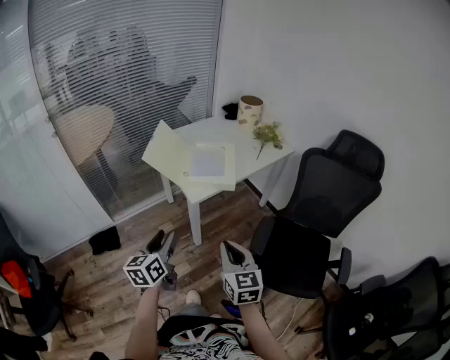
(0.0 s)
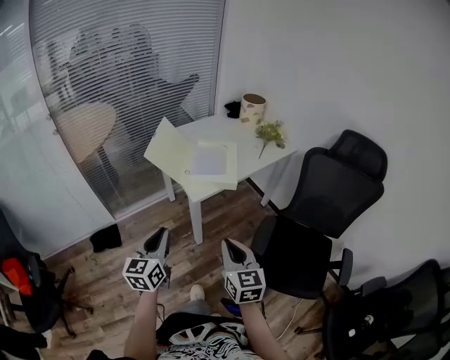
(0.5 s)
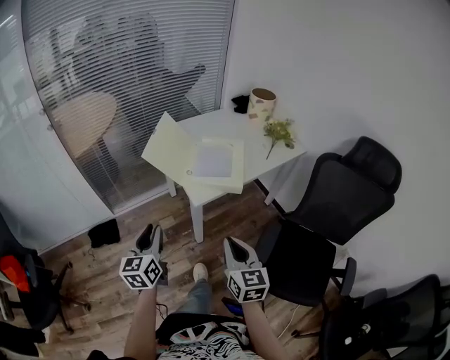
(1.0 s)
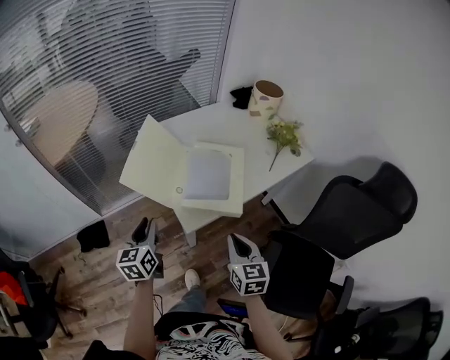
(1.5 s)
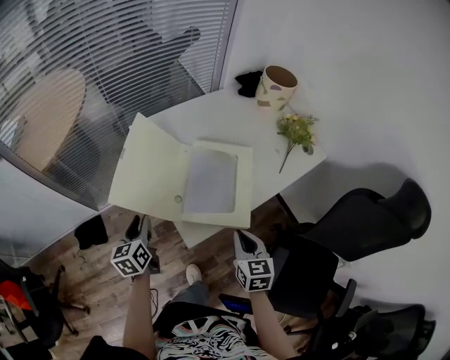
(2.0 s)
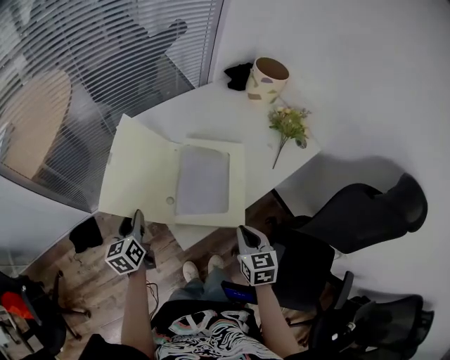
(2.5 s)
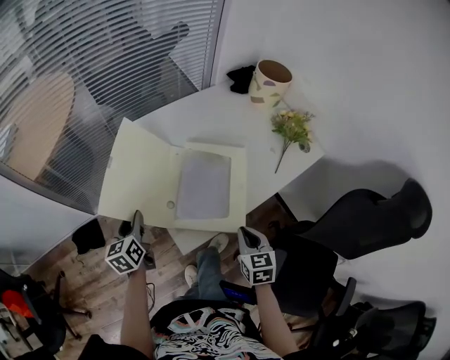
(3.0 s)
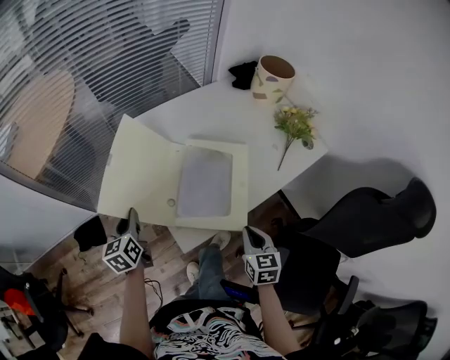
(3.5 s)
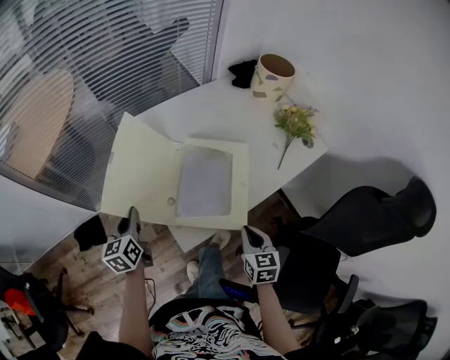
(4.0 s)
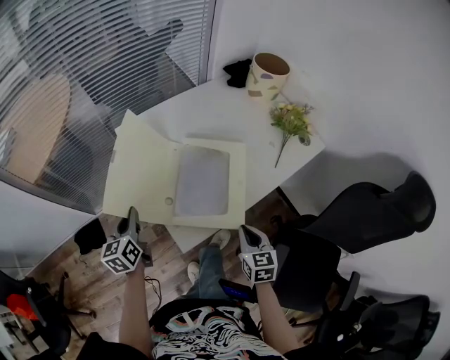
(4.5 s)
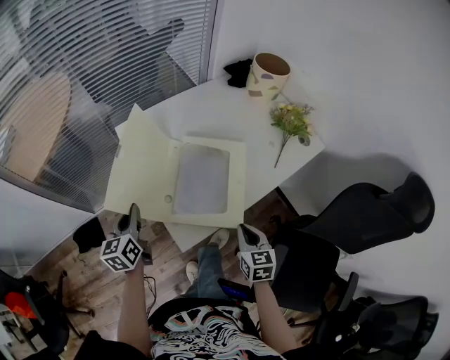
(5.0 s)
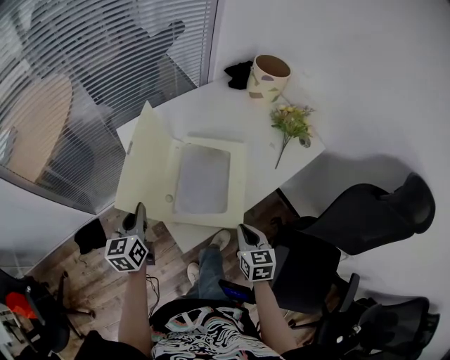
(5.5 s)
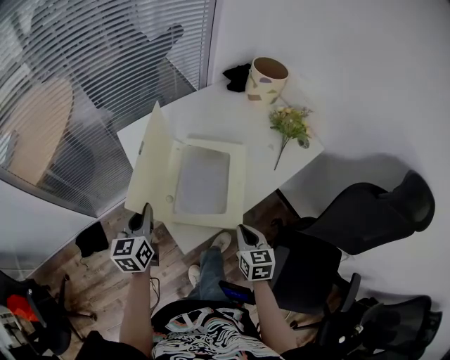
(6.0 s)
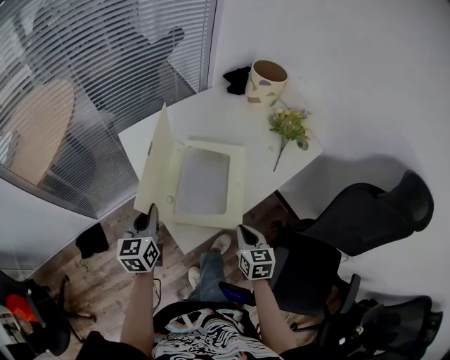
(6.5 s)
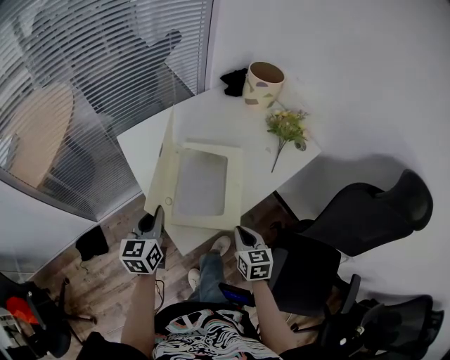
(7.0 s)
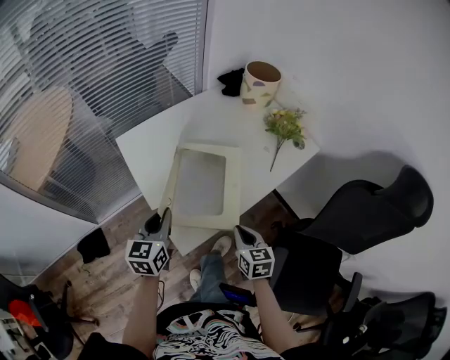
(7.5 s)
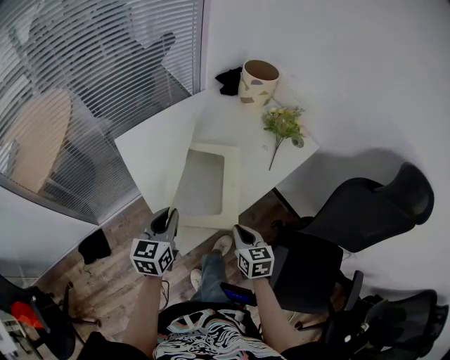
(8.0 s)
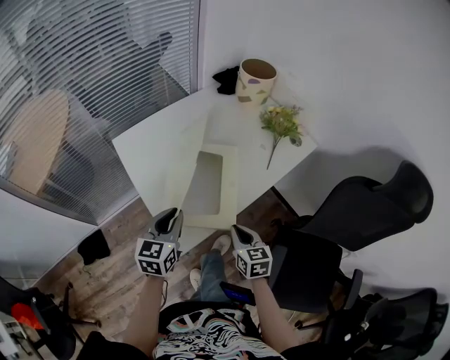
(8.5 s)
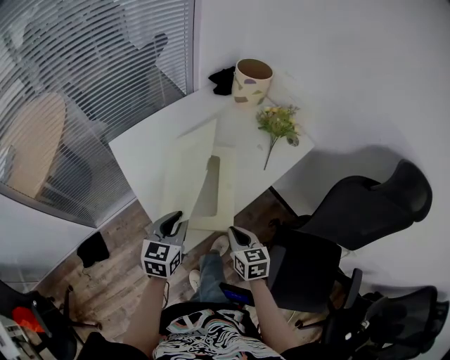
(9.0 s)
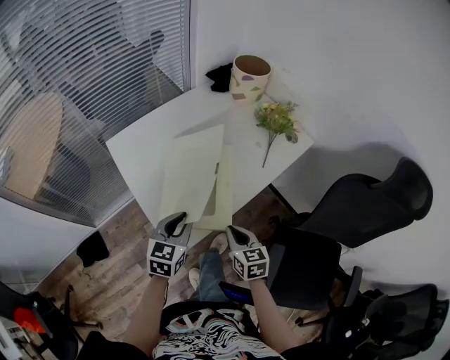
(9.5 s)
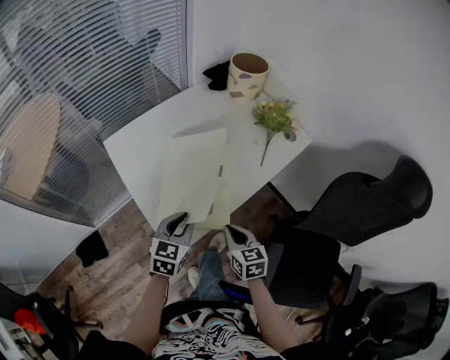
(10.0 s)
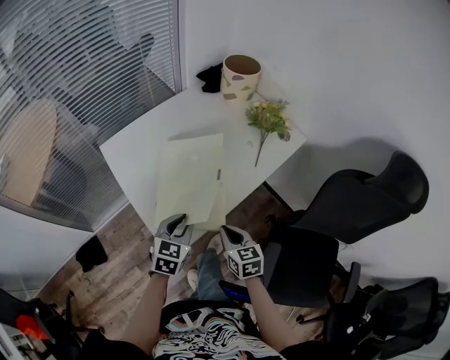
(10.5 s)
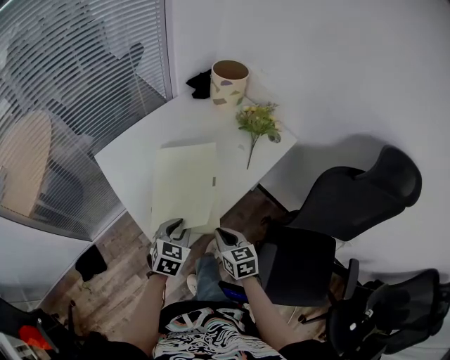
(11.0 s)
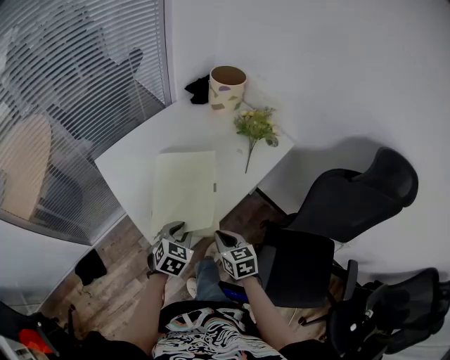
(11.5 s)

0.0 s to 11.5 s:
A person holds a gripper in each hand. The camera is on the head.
0.0 to 2.0 s: The grippers both shift forward by roughly 35 cm.
2.0 to 4.0 s: The right gripper travels downward and to the right by some 5 cm.
4.0 to 6.0 s: The left gripper is displaced to the right by about 5 cm.
6.0 to 7.5 s: The left gripper moves to the right, roughly 5 cm.
7.5 to 9.5 s: The left gripper is displaced to the right by roughly 10 cm.
9.5 to 11.5 s: The left gripper ends up some 5 cm from where it was, and rotates approximately 20 degrees.

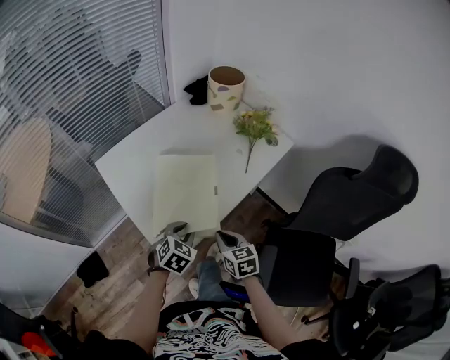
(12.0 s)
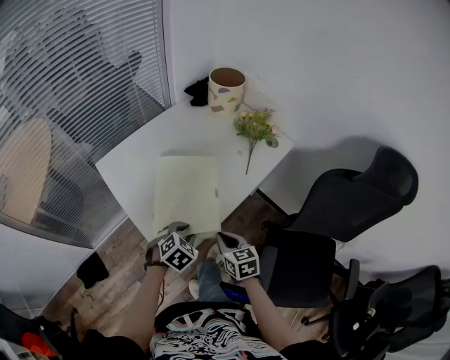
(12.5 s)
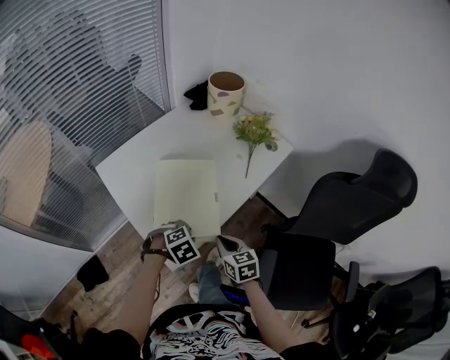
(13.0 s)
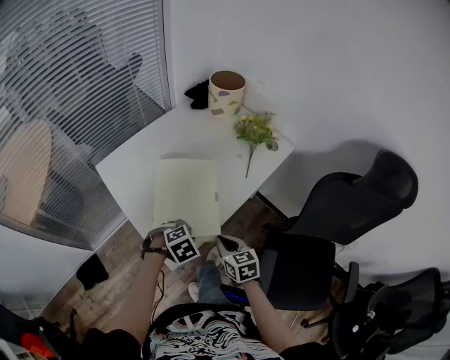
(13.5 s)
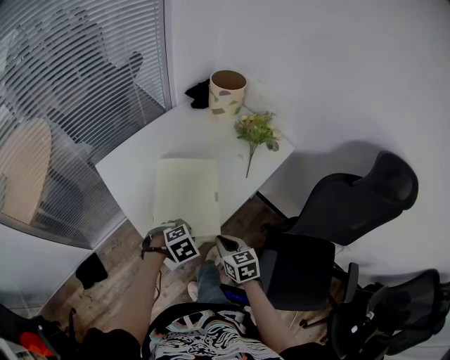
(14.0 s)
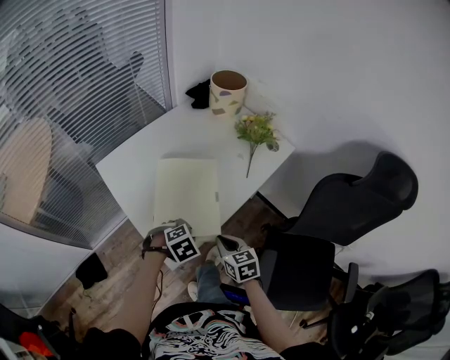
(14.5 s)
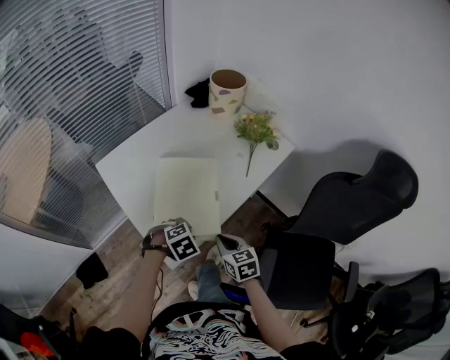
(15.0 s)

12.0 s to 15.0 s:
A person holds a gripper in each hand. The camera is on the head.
12.0 to 13.5 s: The left gripper rotates approximately 30 degrees.
13.5 to 15.0 s: Neither gripper changes place.

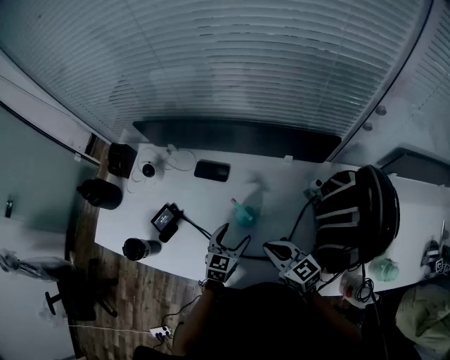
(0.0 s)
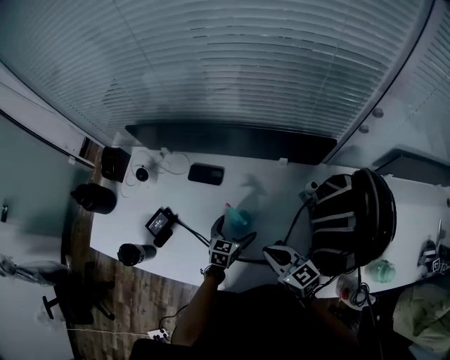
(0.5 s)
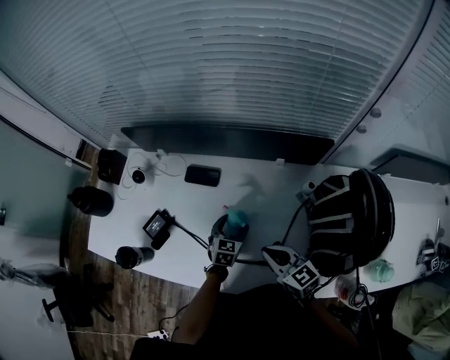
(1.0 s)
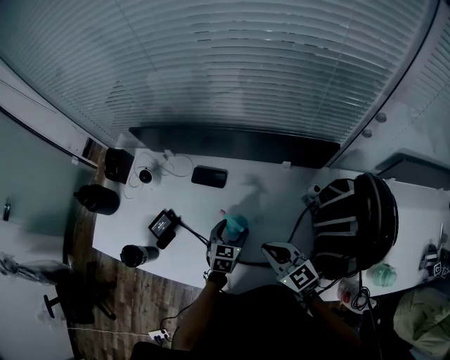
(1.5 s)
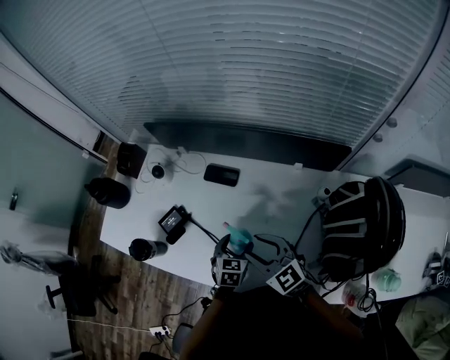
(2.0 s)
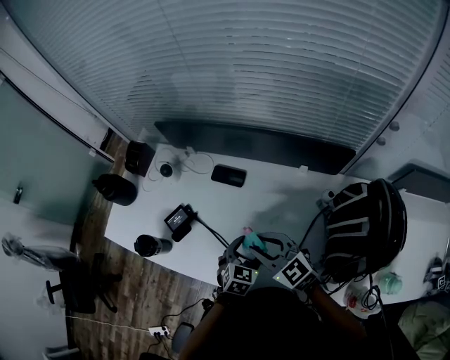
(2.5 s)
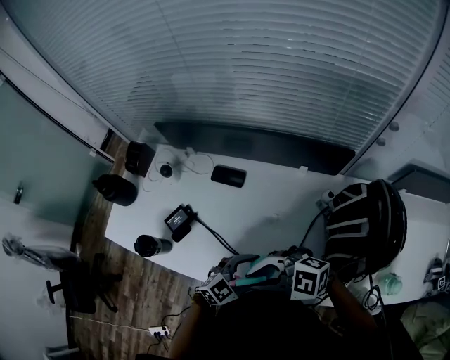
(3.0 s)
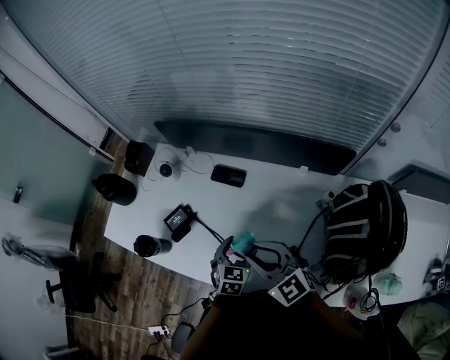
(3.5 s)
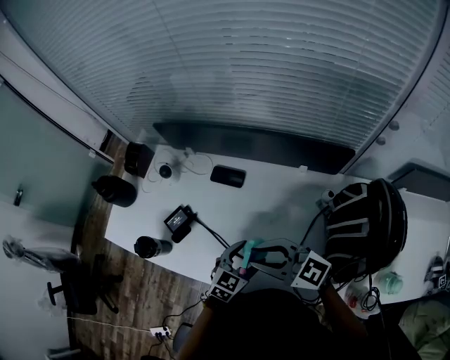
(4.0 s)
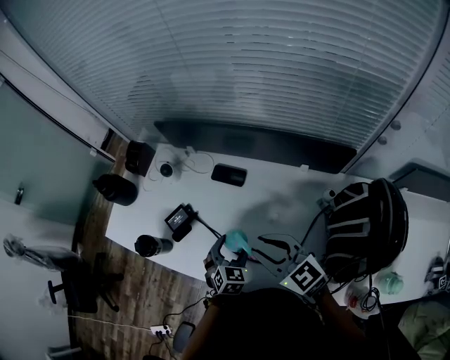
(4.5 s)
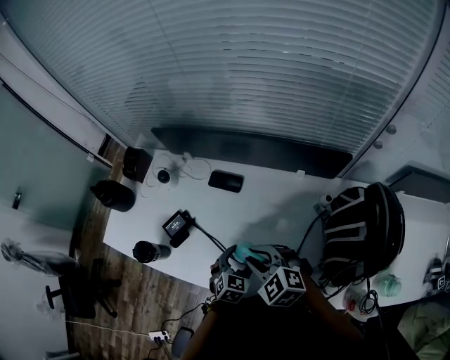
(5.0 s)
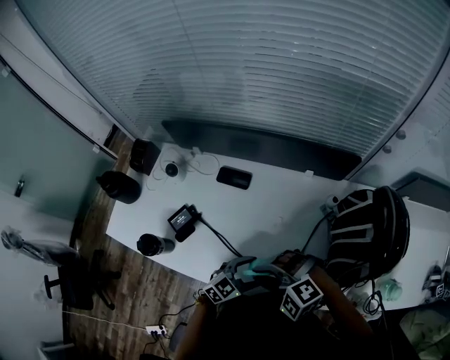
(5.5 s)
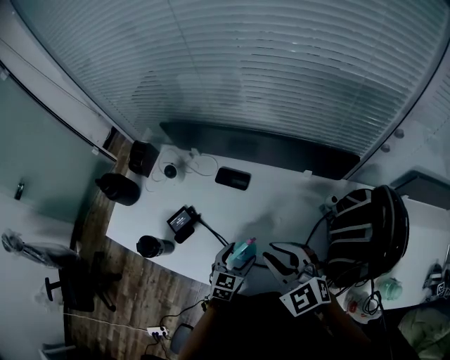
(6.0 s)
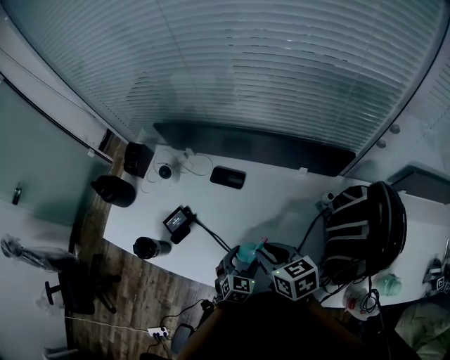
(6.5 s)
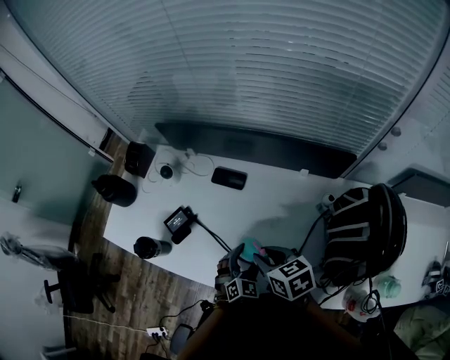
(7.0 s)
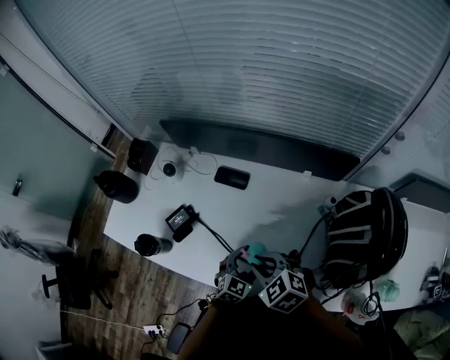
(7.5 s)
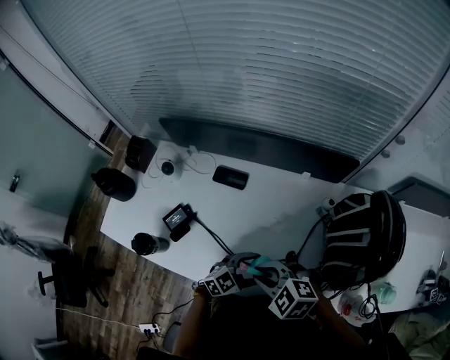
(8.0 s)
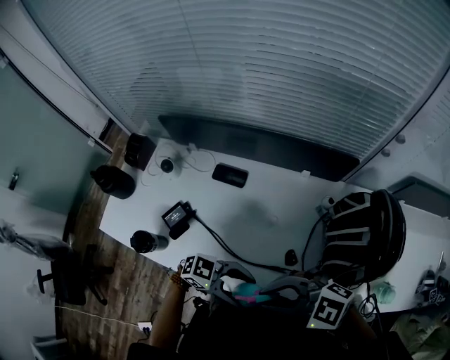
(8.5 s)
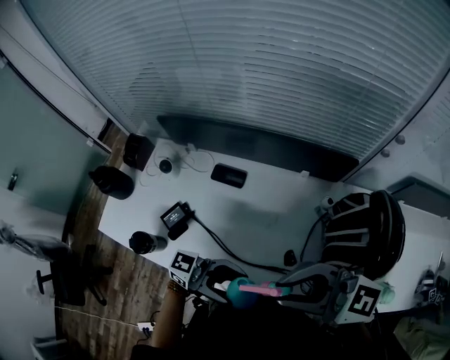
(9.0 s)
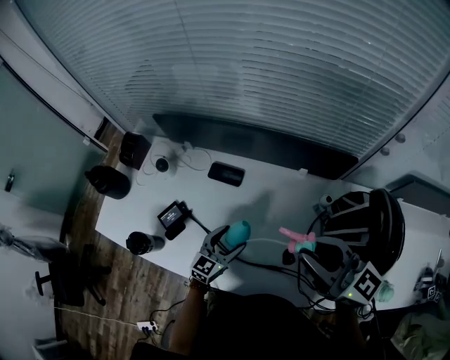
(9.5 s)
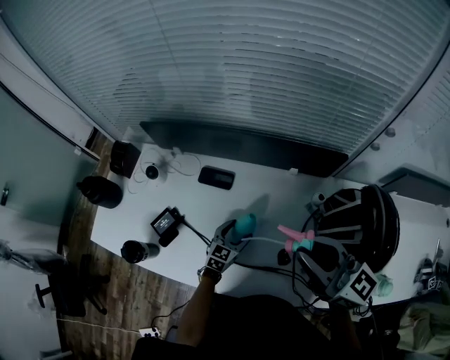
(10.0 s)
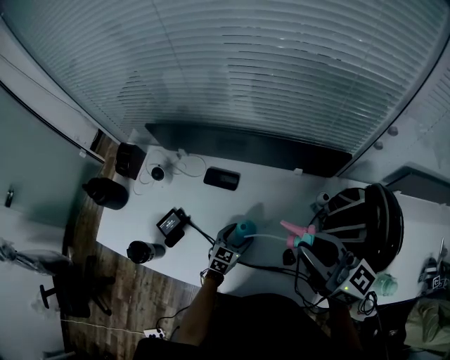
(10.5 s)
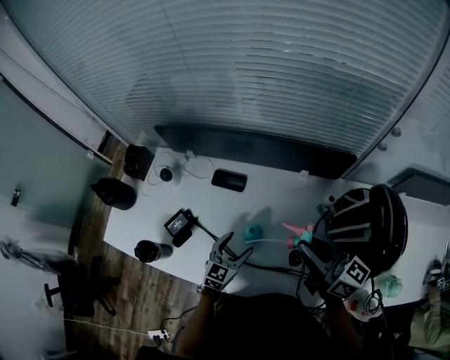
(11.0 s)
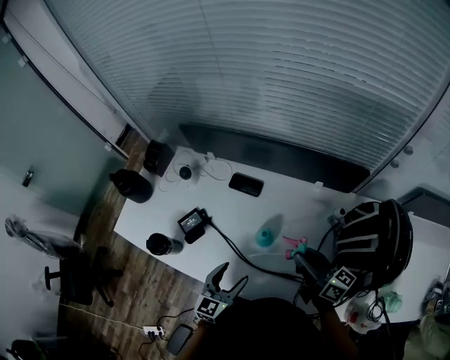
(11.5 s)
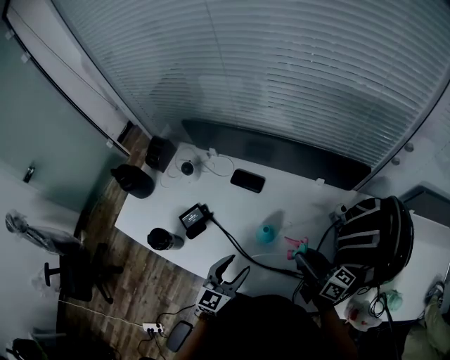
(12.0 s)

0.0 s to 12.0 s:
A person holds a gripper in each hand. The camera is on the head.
0.0 to 2.0 s: The right gripper goes about 10 cm to the left and upward, rotates approximately 20 degrees, and opens up. The left gripper changes its angle by approximately 20 degrees, and opens, then closes once more.
2.0 to 4.0 s: Both grippers travel together upward, roughly 10 cm. The right gripper changes its angle by about 30 degrees, and closes up. The left gripper rotates roughly 30 degrees.
4.0 to 6.0 s: The left gripper changes place by roughly 5 cm, while the right gripper goes downward and returns, approximately 10 cm each way, and turns by roughly 40 degrees.
6.0 to 8.0 s: The left gripper ends up about 10 cm from where it was, and rotates roughly 40 degrees; the right gripper is displaced downward by some 5 cm, and changes its angle by roughly 30 degrees.
8.0 to 10.0 s: The right gripper heads upward, covering approximately 15 cm, and tilts its fingers roughly 50 degrees upward. Meanwhile the left gripper travels upward and back again, roughly 20 cm each way, and rotates approximately 30 degrees.
10.0 to 12.0 s: The left gripper travels upward, backward and to the left by about 20 cm, and swivels approximately 20 degrees. Meanwhile the right gripper travels downward by about 15 cm, and turns by some 30 degrees.
